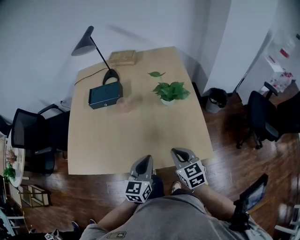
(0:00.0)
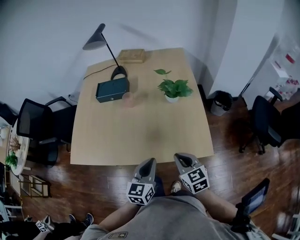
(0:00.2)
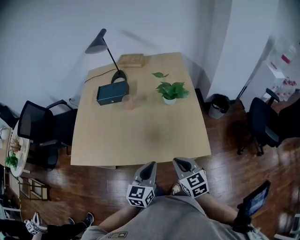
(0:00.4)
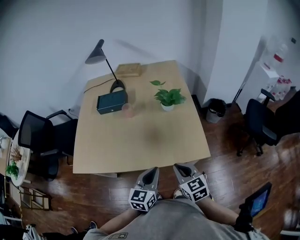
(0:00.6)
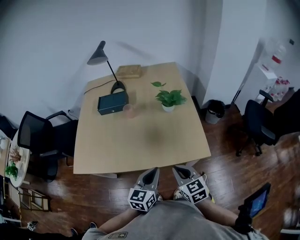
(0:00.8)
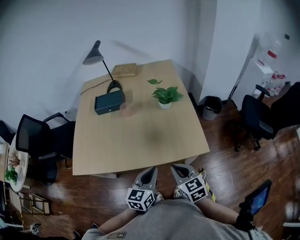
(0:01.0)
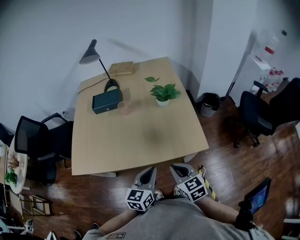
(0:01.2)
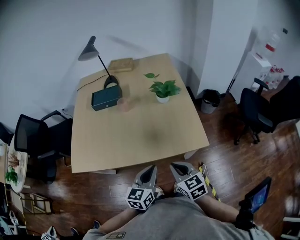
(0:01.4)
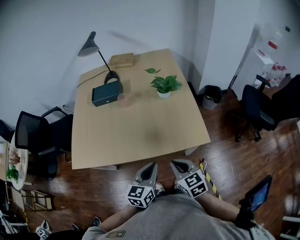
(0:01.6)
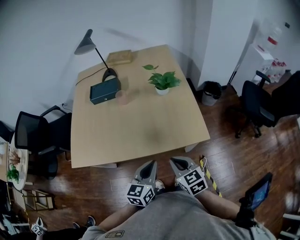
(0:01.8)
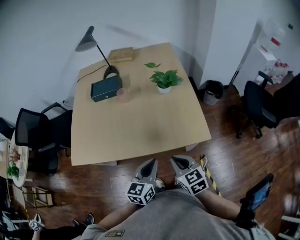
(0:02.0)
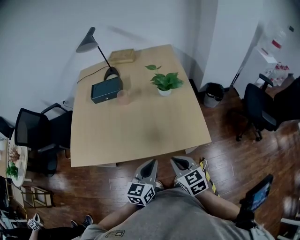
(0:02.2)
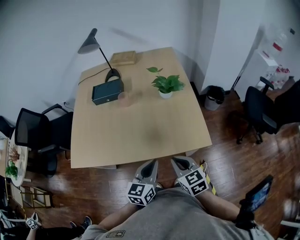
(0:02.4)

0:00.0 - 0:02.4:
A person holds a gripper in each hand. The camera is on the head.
0:00.0 - 0:01.2: The two grippers go roughly 10 cm backward.
0:01.2 - 0:02.4: There are only small adjustments of the grippers.

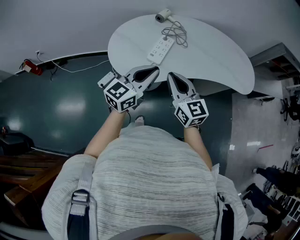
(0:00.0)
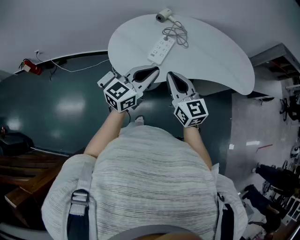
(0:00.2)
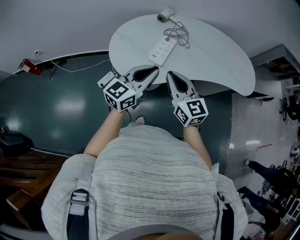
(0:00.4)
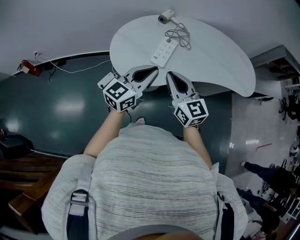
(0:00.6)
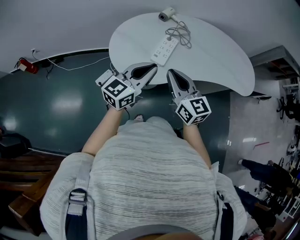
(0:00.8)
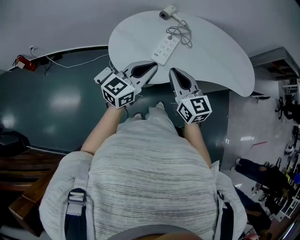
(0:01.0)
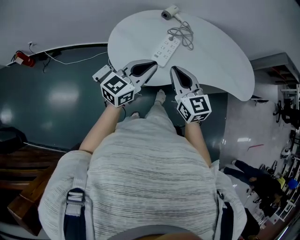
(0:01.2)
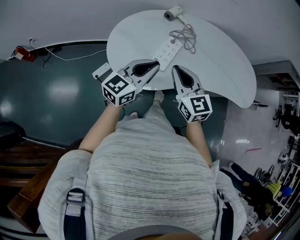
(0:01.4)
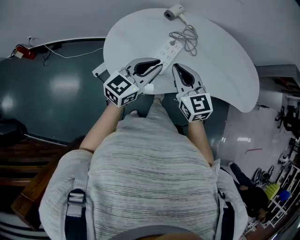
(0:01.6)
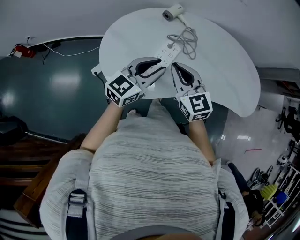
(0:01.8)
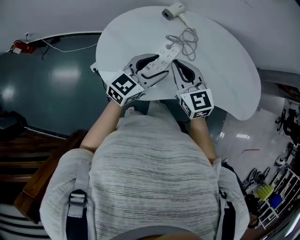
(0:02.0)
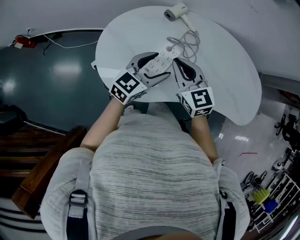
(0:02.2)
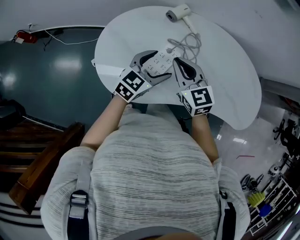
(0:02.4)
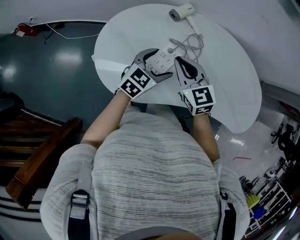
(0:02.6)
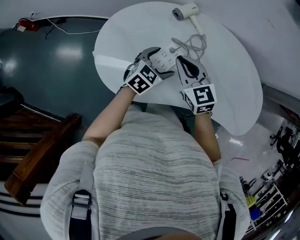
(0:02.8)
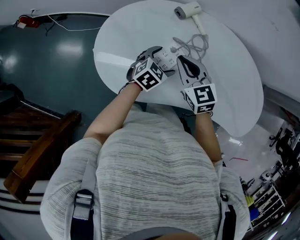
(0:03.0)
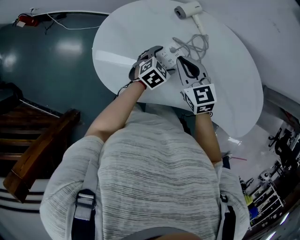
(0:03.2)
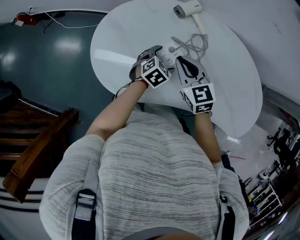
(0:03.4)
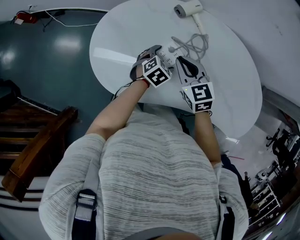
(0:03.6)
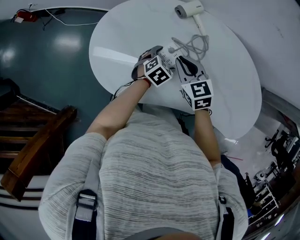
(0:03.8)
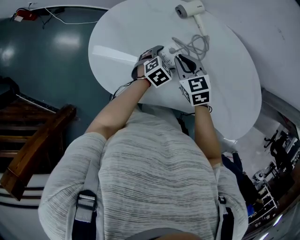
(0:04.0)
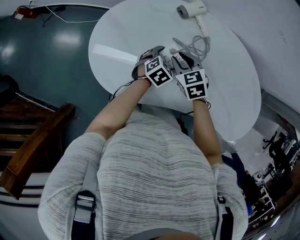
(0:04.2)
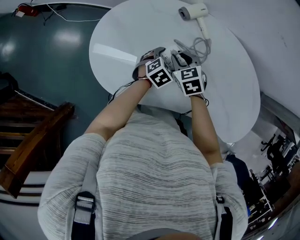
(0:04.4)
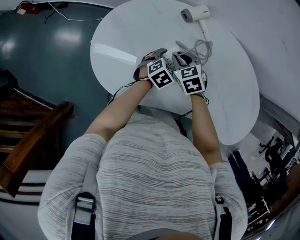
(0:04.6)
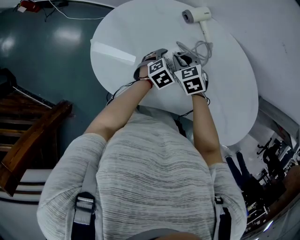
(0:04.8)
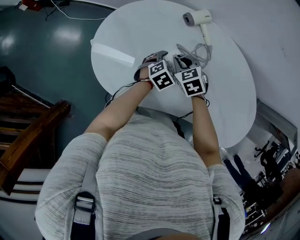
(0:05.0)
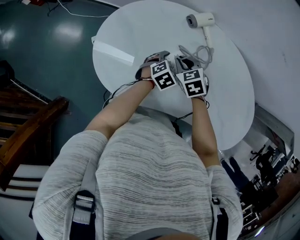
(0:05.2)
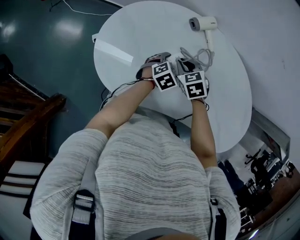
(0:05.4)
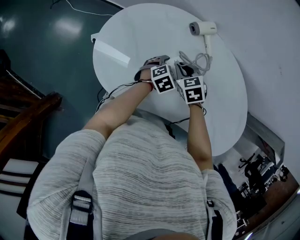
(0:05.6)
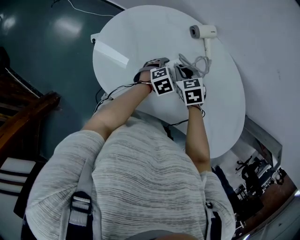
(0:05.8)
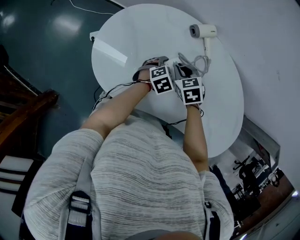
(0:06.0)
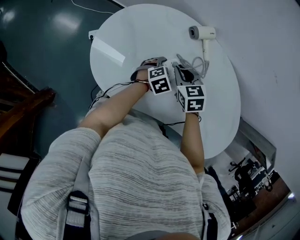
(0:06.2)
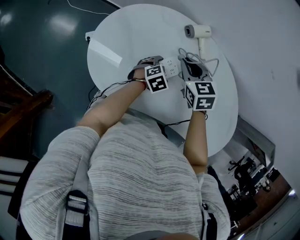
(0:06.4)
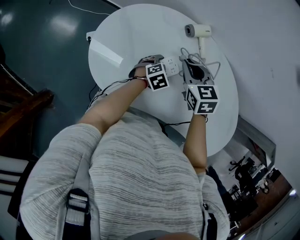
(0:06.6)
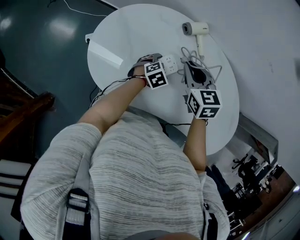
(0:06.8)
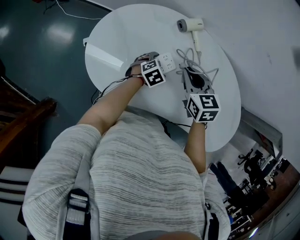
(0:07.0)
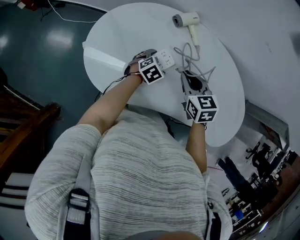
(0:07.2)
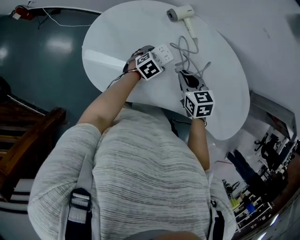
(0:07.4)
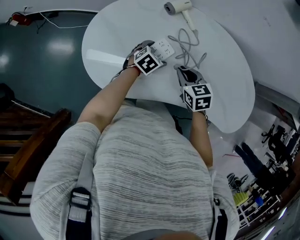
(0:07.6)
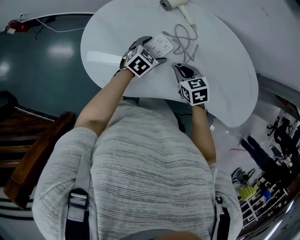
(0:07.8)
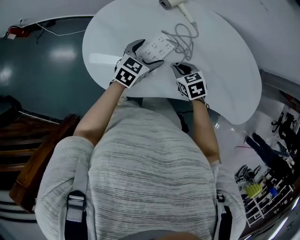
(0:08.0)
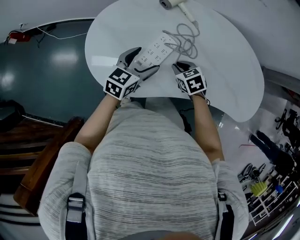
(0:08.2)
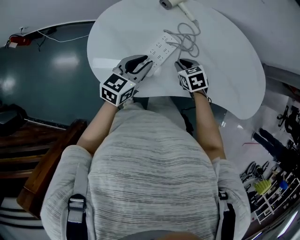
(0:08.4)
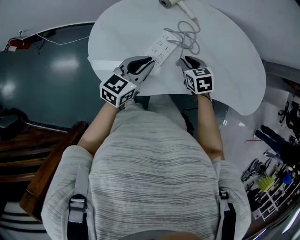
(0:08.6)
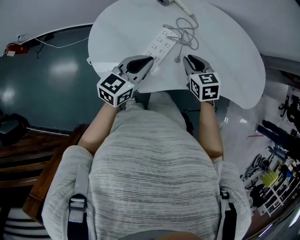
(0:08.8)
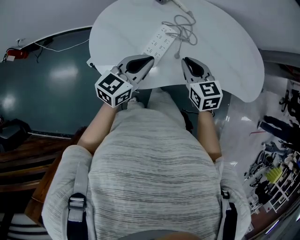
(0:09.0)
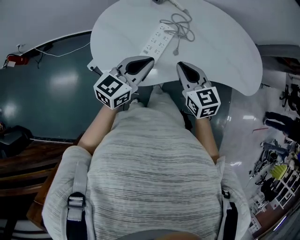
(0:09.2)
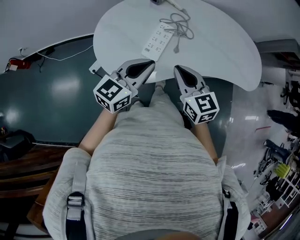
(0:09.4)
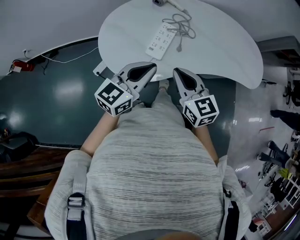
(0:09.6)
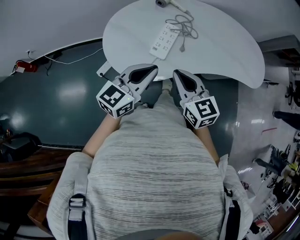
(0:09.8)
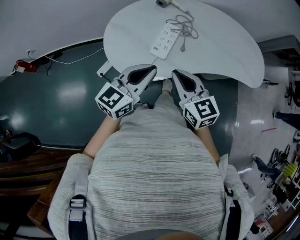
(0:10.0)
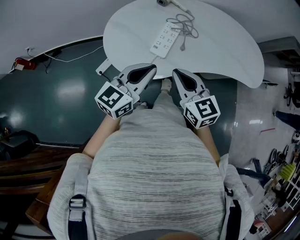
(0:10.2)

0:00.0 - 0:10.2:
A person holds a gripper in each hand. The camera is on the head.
0:00.0 - 0:01.4: Both grippers travel together forward, about 10 cm.
0:01.4 - 0:03.0: The left gripper heads downward, forward and to the right, covering approximately 30 cm, angles its fingers downward, by roughly 40 degrees, and opens. Meanwhile the right gripper travels forward and downward by some 20 cm, and swivels roughly 20 degrees.
0:03.0 - 0:04.4: The left gripper moves downward, some 5 cm. Meanwhile the right gripper is displaced downward by roughly 10 cm, and swivels roughly 20 degrees.
0:04.4 - 0:05.8: The grippers stay close to where they were, moving slightly.
0:05.8 - 0:07.2: The right gripper is displaced upward and to the right by roughly 10 cm, and swivels approximately 20 degrees.
0:07.2 - 0:08.8: The right gripper travels backward by roughly 5 cm, and reaches some 15 cm downward, then returns; the left gripper heads upward, backward and to the left, covering some 25 cm, tips its fingers upward by some 40 degrees, and closes up.
0:08.8 - 0:10.2: Both grippers move backward and upward, approximately 20 cm. The right gripper rotates about 30 degrees.

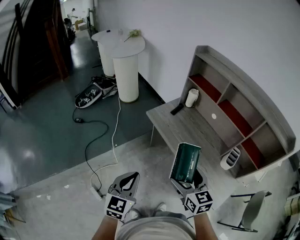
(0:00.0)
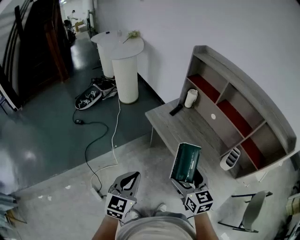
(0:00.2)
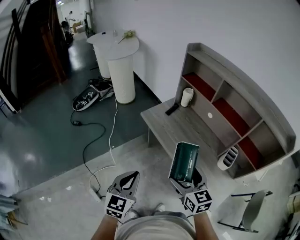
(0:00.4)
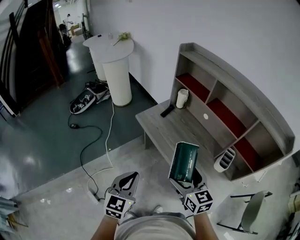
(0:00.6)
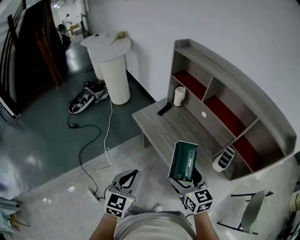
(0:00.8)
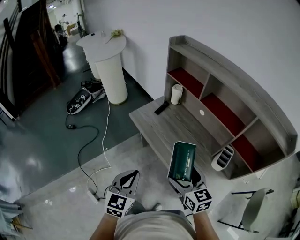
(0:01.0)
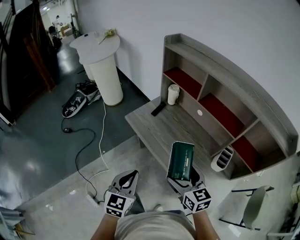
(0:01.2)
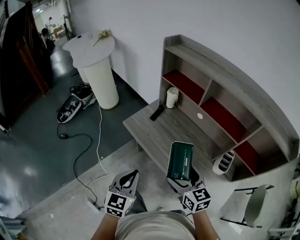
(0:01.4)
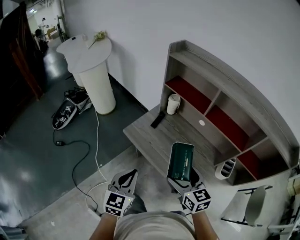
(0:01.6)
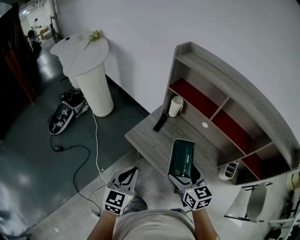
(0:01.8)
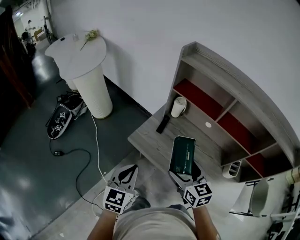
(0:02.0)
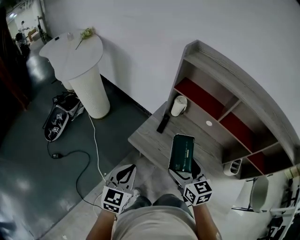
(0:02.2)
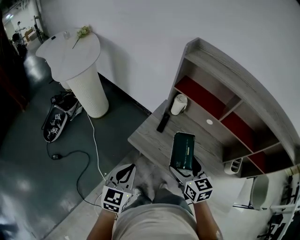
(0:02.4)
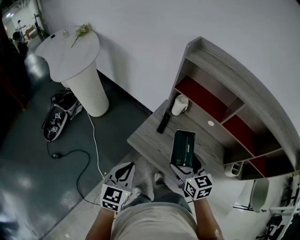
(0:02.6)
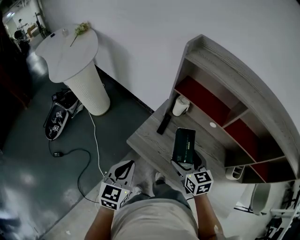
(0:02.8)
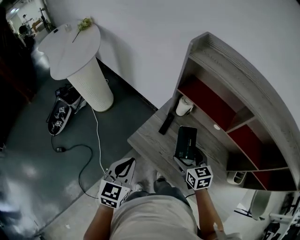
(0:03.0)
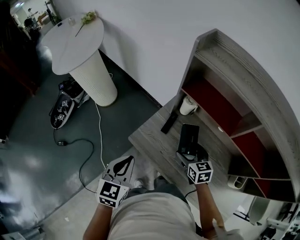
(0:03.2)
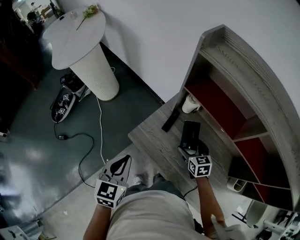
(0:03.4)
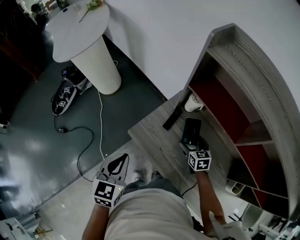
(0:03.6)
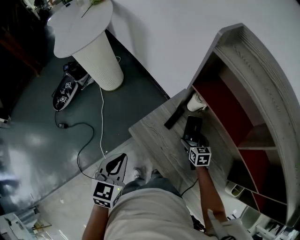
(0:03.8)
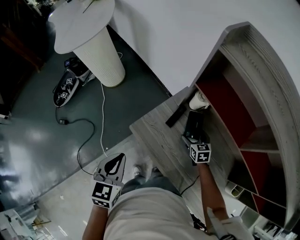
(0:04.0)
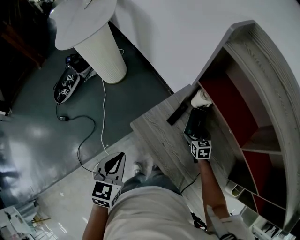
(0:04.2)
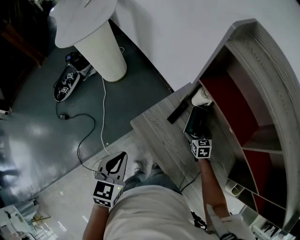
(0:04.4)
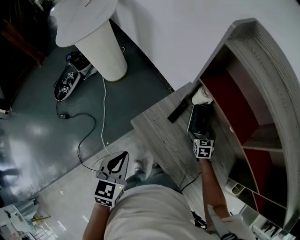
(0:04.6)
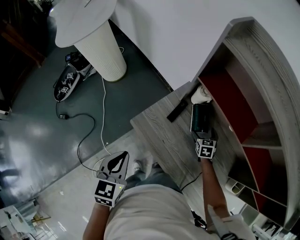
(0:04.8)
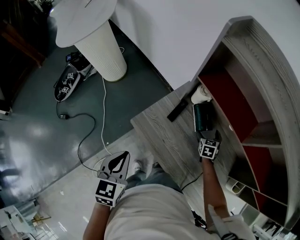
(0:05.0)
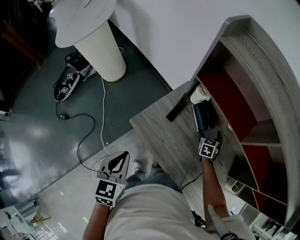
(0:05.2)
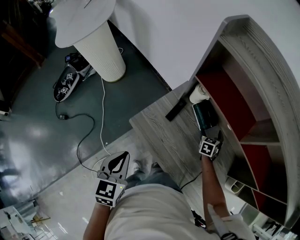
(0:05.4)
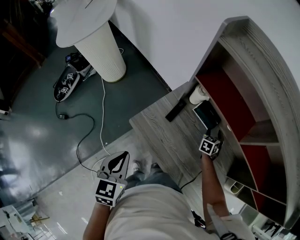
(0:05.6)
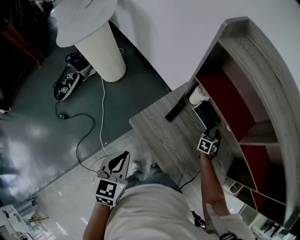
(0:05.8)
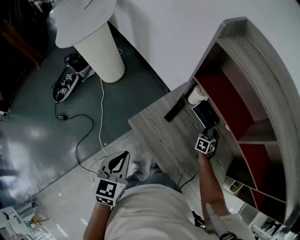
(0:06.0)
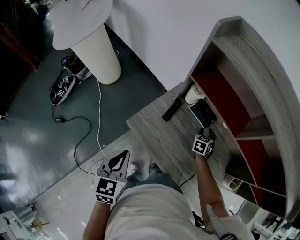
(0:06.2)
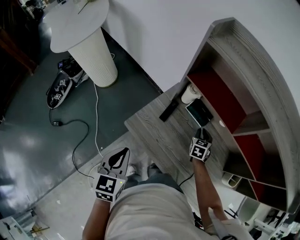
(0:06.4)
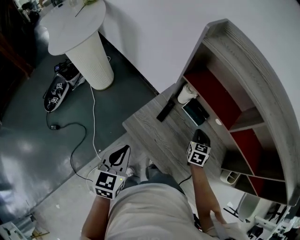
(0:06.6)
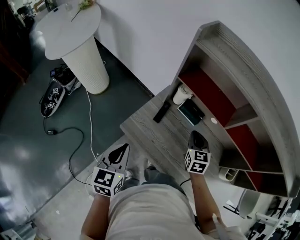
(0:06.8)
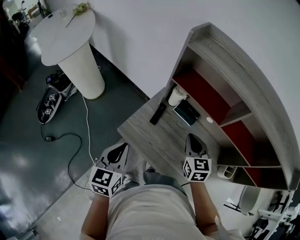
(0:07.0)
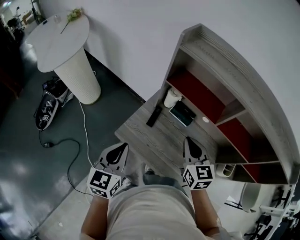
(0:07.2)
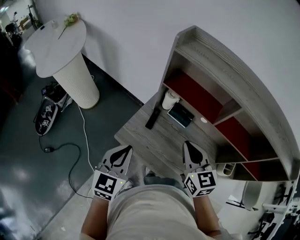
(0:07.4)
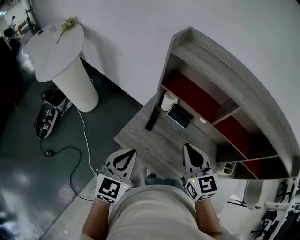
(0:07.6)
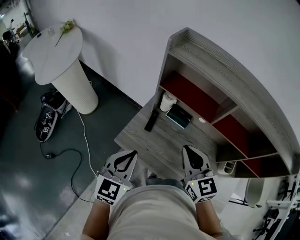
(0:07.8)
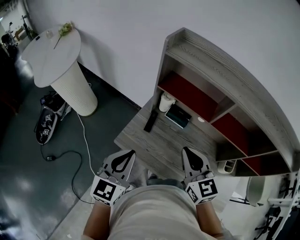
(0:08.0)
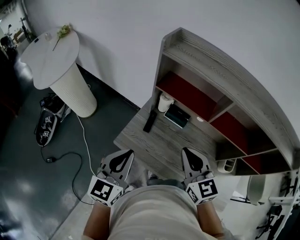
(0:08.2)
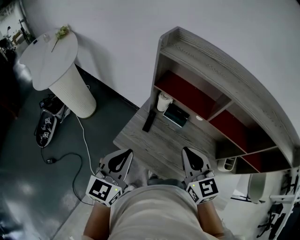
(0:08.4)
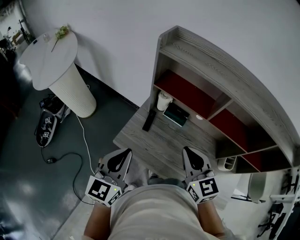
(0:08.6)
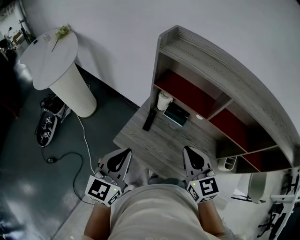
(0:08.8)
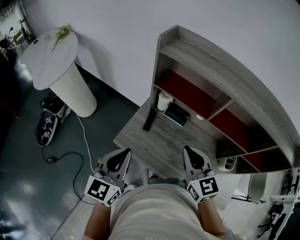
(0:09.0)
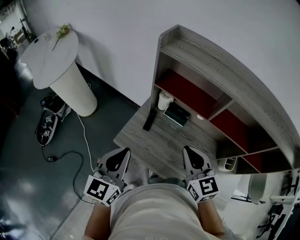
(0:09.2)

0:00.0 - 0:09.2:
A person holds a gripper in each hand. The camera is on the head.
0:00.0 - 0:01.6: Both grippers travel together forward, about 20 cm.
0:01.6 - 0:03.0: The right gripper heads forward, covering approximately 25 cm; the left gripper goes about 20 cm forward and to the left.
0:03.0 - 0:04.6: The right gripper heads downward, forward and to the right, covering some 25 cm.
0:04.6 - 0:06.2: The right gripper heads to the right, covering some 10 cm, swivels some 30 degrees, and closes up.
0:06.2 - 0:07.6: The left gripper is displaced upward and to the right by roughly 10 cm, and rotates some 30 degrees. Meanwhile the right gripper travels upward and backward by roughly 35 cm, and changes its angle by roughly 40 degrees.
0:07.6 - 0:09.2: The grippers make only small movements.

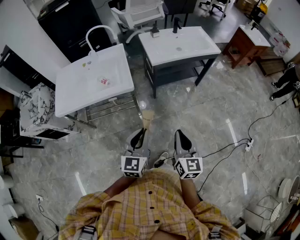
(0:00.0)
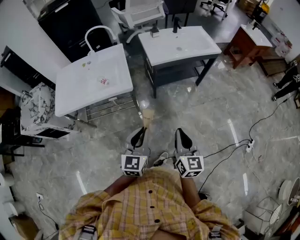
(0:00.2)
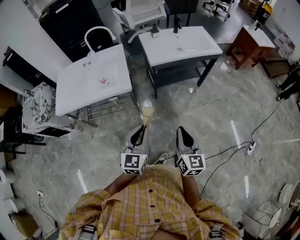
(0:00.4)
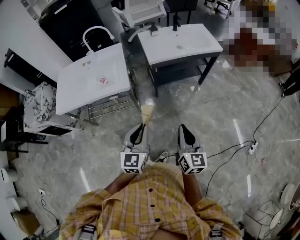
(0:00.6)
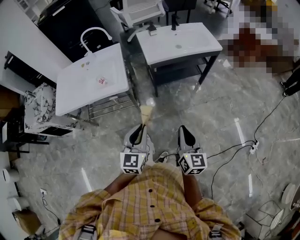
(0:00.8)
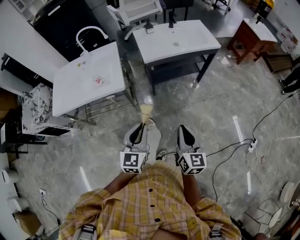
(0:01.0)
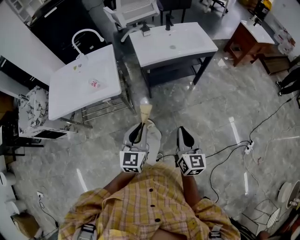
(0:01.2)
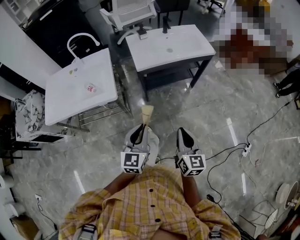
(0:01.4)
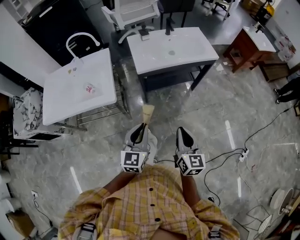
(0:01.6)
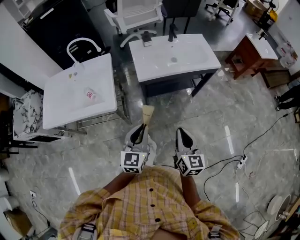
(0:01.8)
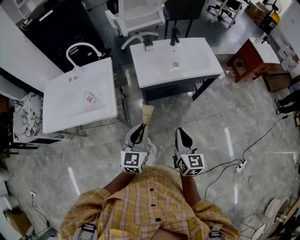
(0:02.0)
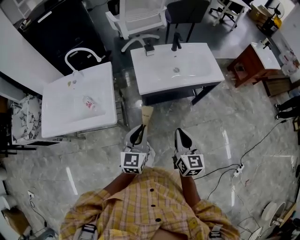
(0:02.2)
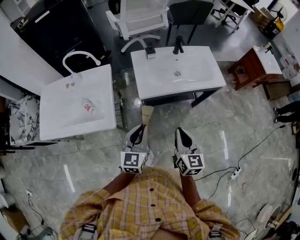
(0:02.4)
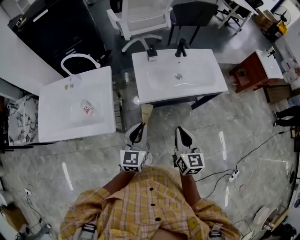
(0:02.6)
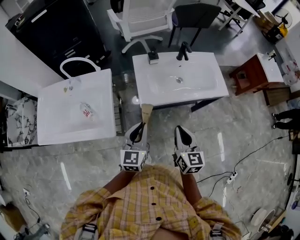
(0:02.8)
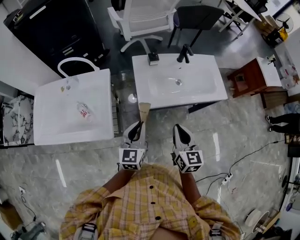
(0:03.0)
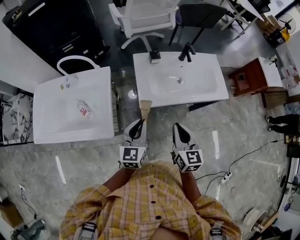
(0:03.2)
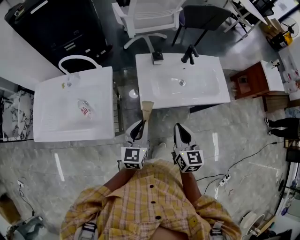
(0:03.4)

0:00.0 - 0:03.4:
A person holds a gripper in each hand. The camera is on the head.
0:00.0 - 0:01.6: The two grippers go some 20 cm forward and to the right.
0:01.6 - 0:03.4: The grippers both shift forward by some 30 cm.
